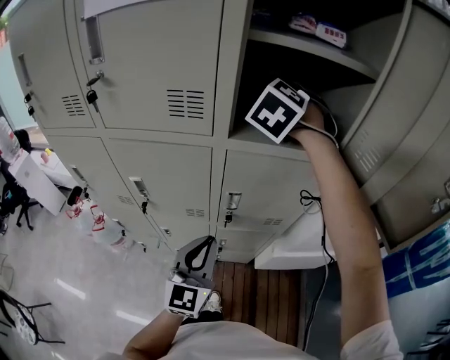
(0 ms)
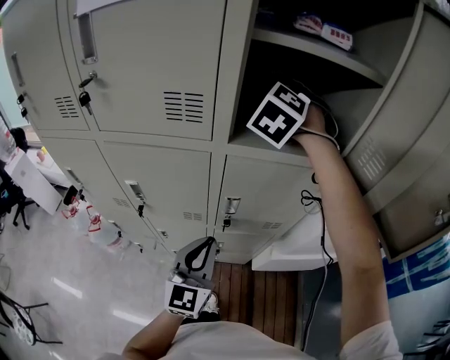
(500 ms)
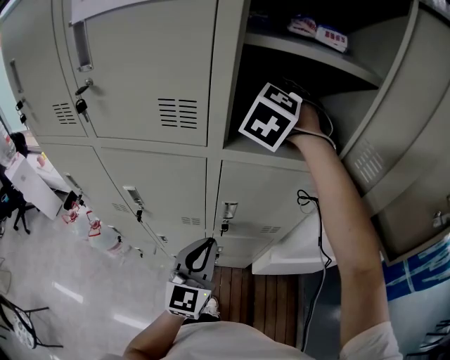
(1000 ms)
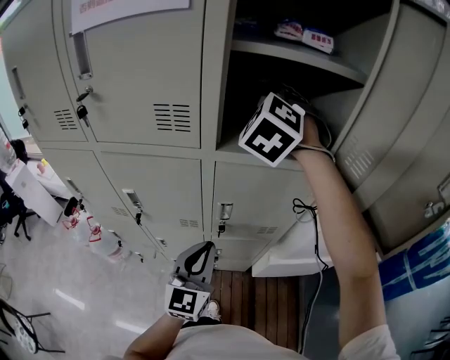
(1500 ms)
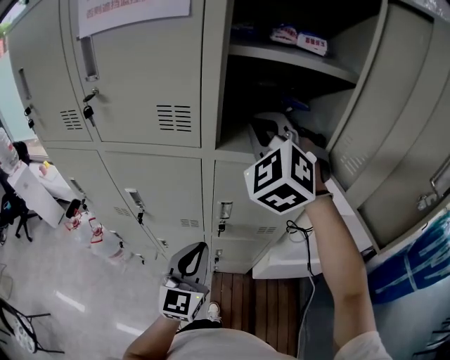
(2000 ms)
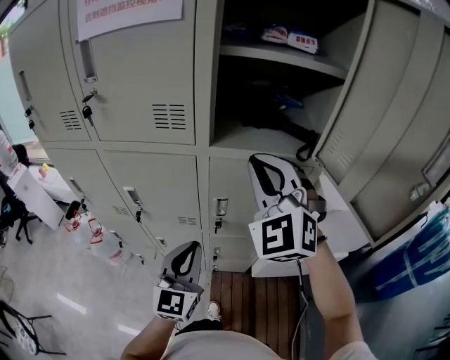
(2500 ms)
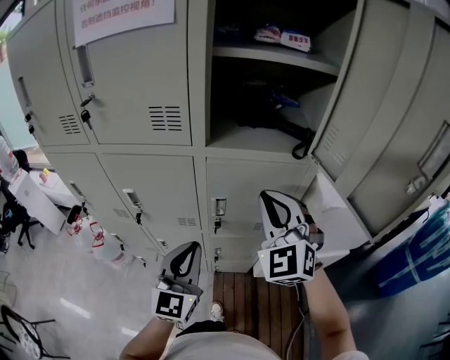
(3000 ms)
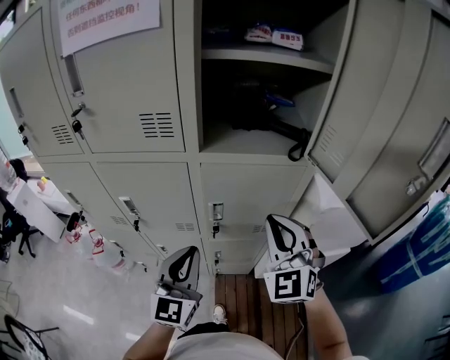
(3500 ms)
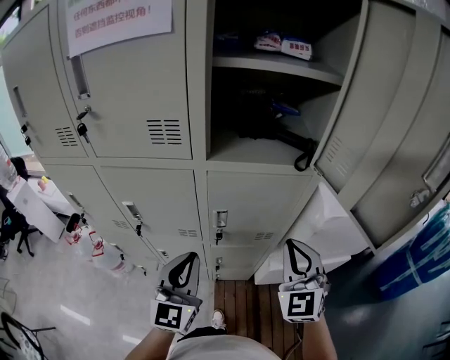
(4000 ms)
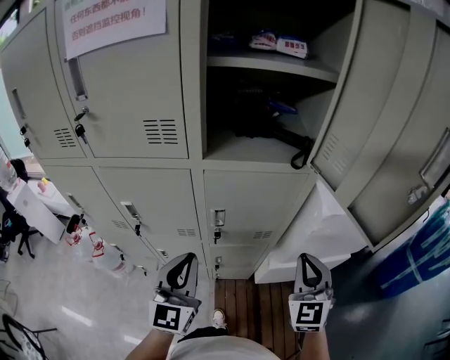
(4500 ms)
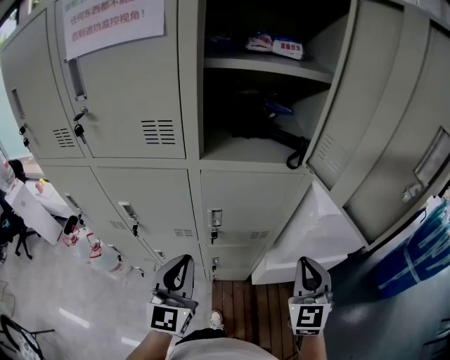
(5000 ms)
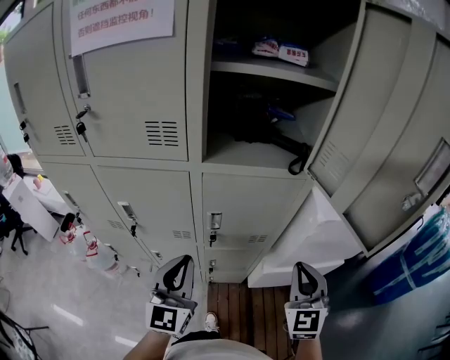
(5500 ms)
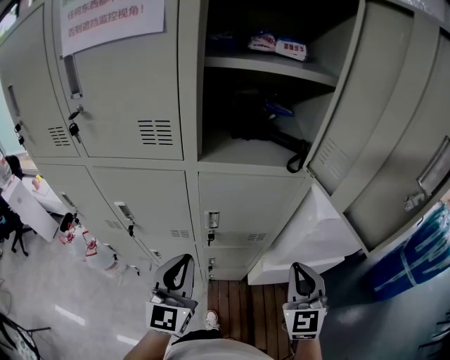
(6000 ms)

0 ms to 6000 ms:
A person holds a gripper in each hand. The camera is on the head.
0 ms to 2000 ms: The right gripper heads backward, covering approximately 10 cm, turns by roughly 30 degrees, and closes up.
2000 ms to 4000 ms: The right gripper shifts roughly 30 cm downward, backward and to the right, and rotates roughly 30 degrees.
4000 ms to 6000 ms: The right gripper is displaced to the right by approximately 5 cm.

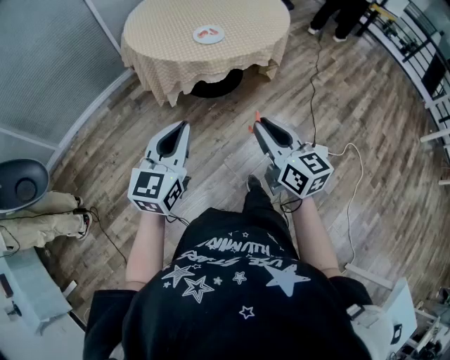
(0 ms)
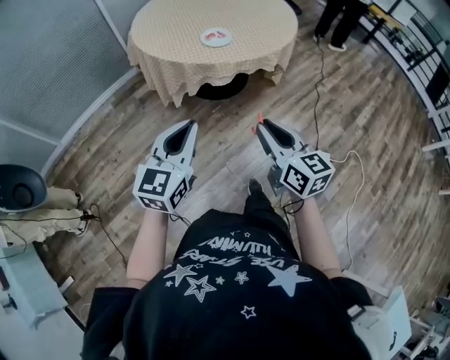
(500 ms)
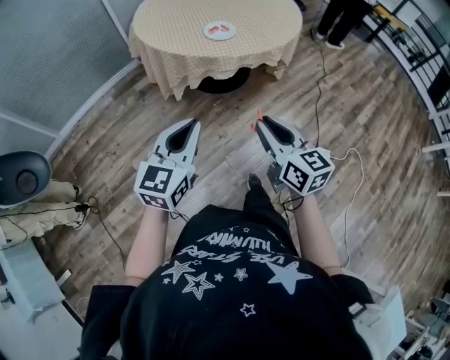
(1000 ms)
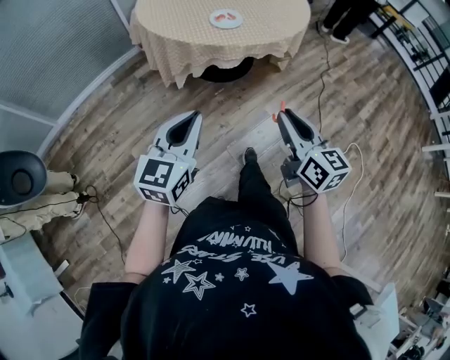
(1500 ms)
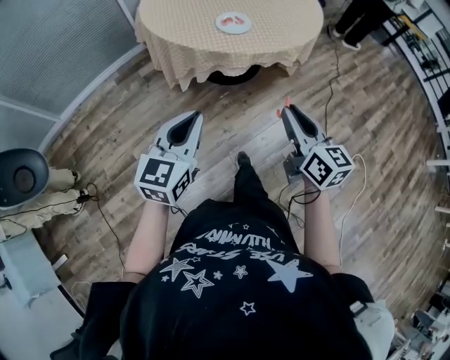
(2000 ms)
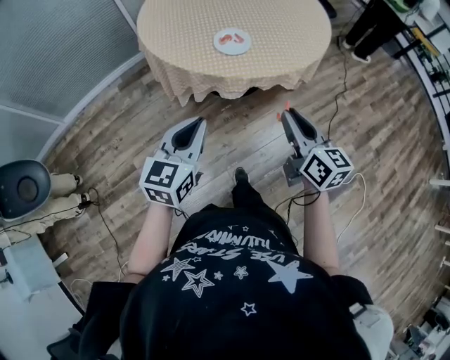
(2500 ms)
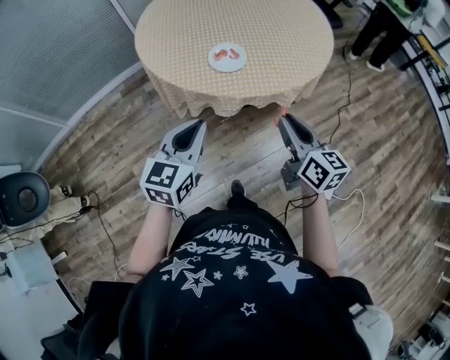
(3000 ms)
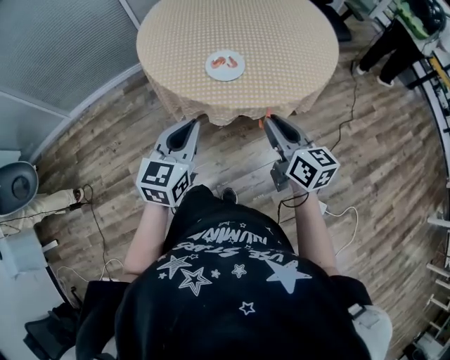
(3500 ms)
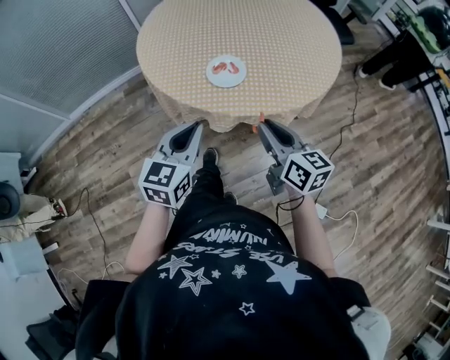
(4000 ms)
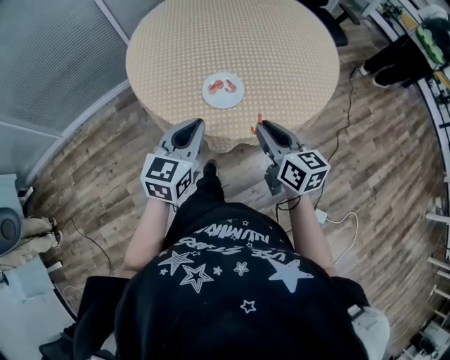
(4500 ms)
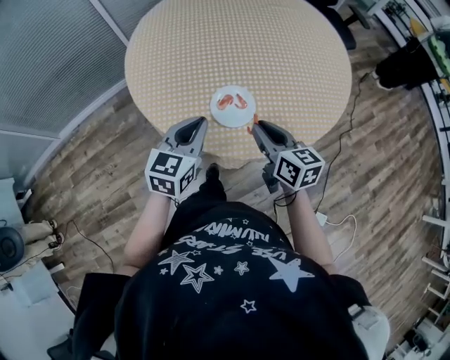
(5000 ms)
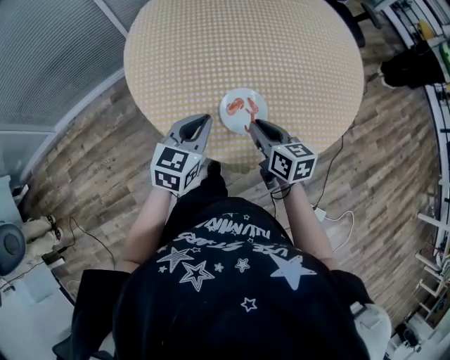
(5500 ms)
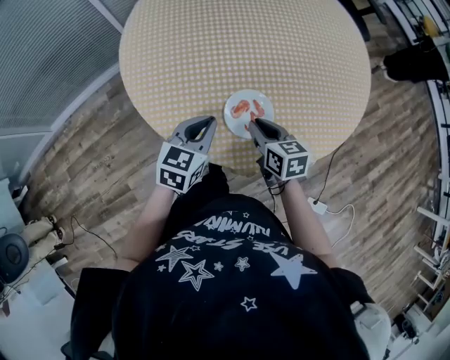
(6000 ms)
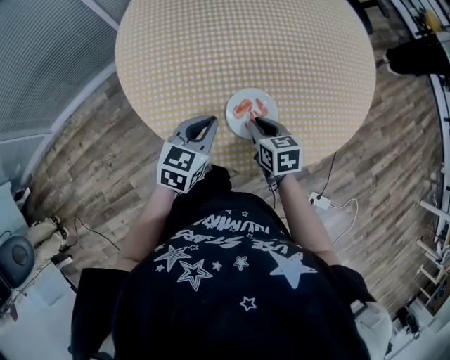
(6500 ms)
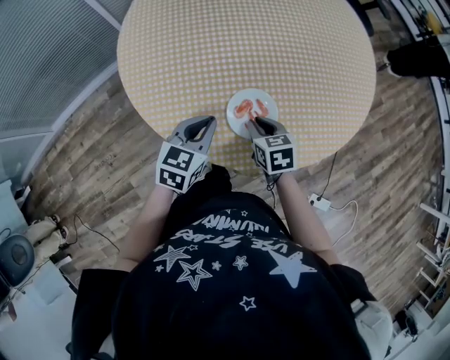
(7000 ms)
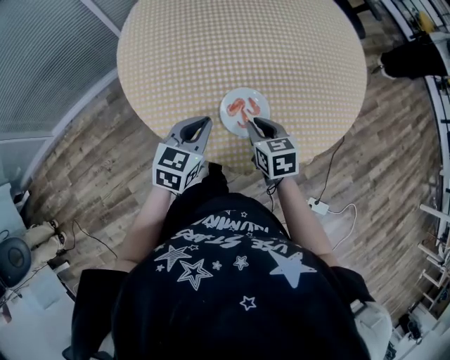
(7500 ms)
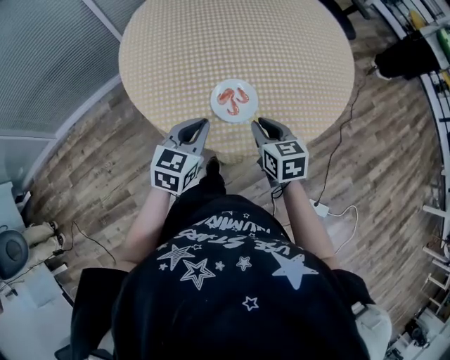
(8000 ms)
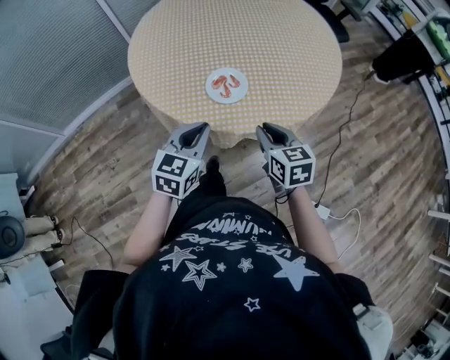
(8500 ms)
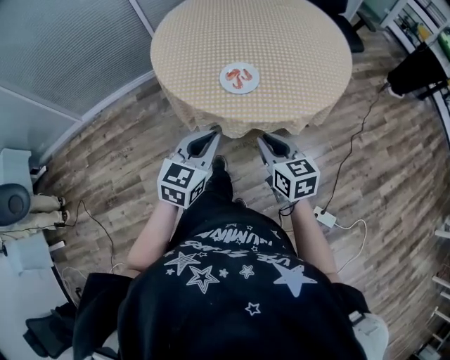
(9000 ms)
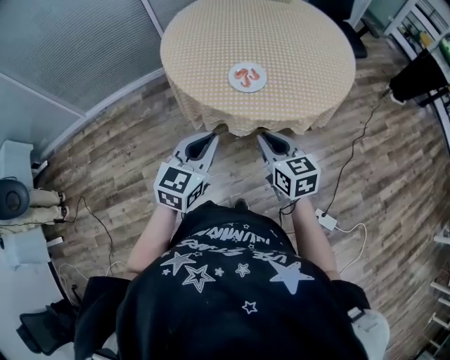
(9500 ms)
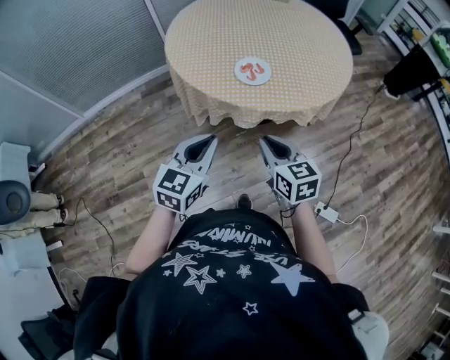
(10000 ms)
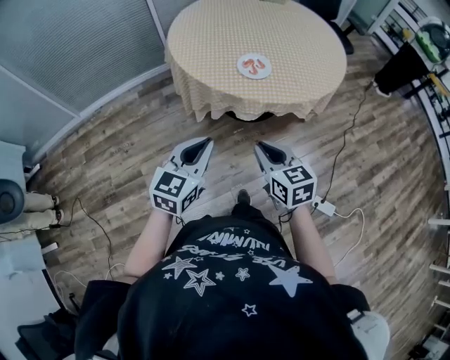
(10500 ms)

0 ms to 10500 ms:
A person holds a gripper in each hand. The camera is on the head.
0 ms to 2000 ms: The grippers both shift forward by approximately 10 cm.
2000 ms to 4000 ms: The right gripper is displaced forward by roughly 25 cm, while the left gripper goes some 25 cm forward and to the right.
4000 ms to 6500 ms: The right gripper shifts roughly 30 cm forward, downward and to the left, and tips its fingers downward by roughly 30 degrees. Meanwhile the left gripper moves forward and downward, some 30 cm, and swivels approximately 20 degrees.
6500 ms to 8500 ms: The right gripper is displaced backward, upward and to the right by some 25 cm, while the left gripper is displaced backward and upward by approximately 20 cm.
8500 ms to 10500 ms: Both grippers move backward and to the left, some 25 cm.

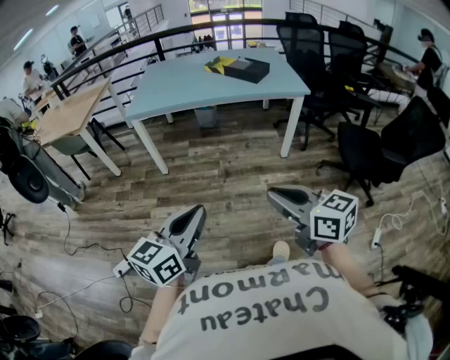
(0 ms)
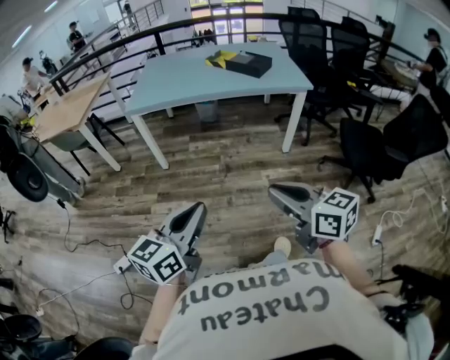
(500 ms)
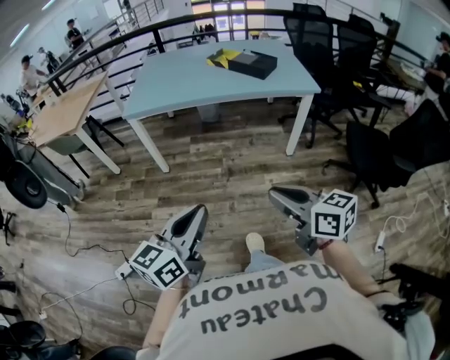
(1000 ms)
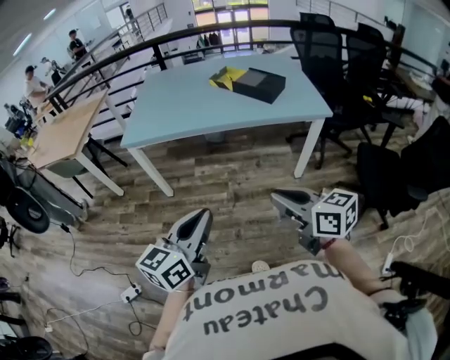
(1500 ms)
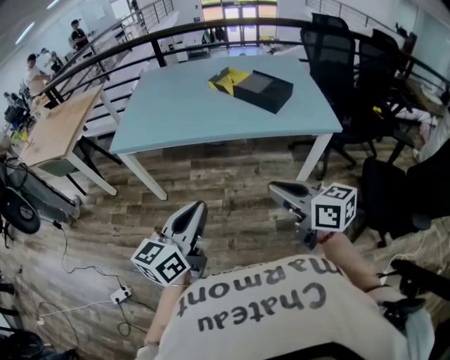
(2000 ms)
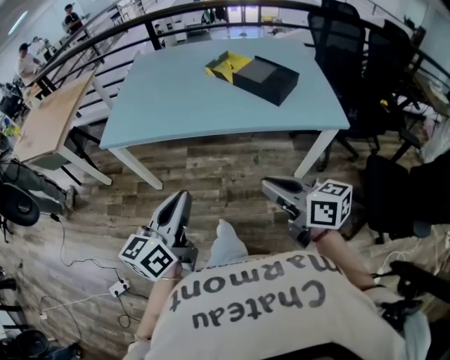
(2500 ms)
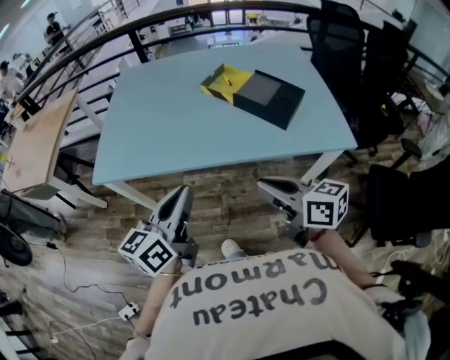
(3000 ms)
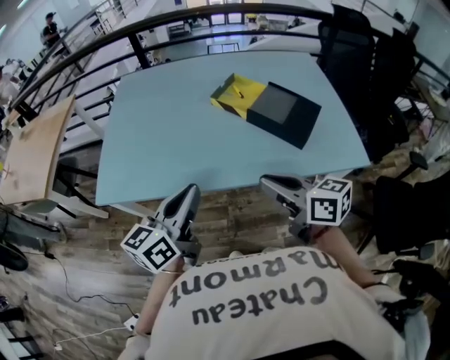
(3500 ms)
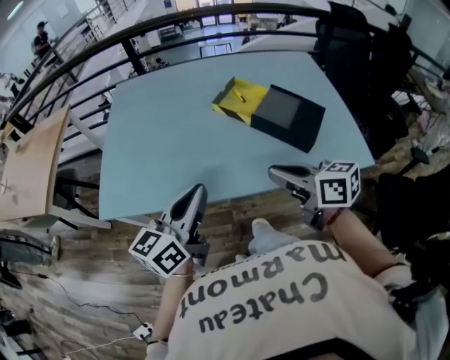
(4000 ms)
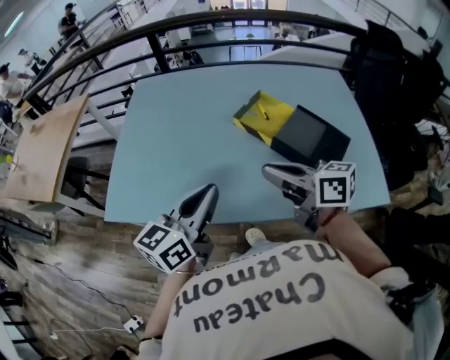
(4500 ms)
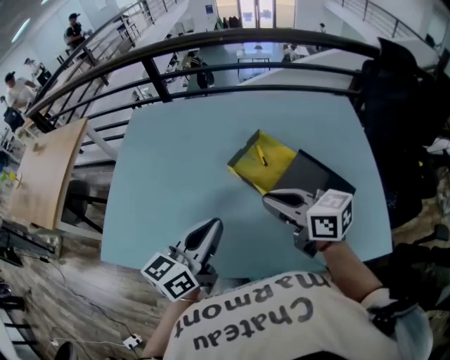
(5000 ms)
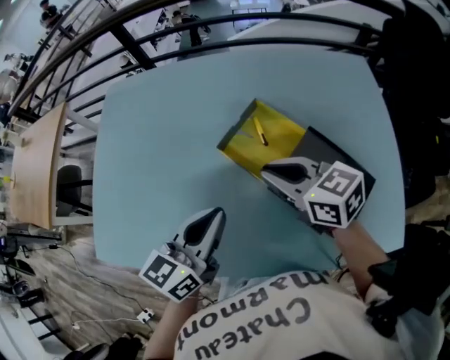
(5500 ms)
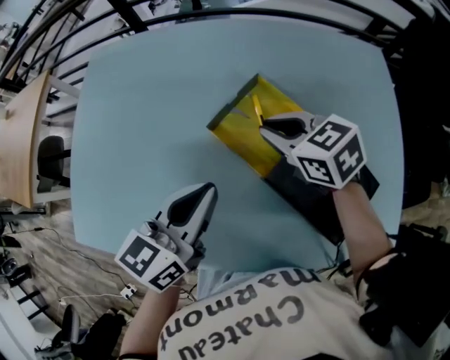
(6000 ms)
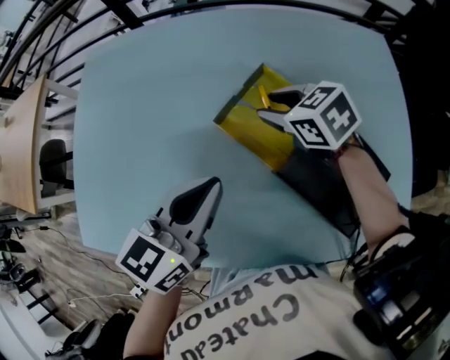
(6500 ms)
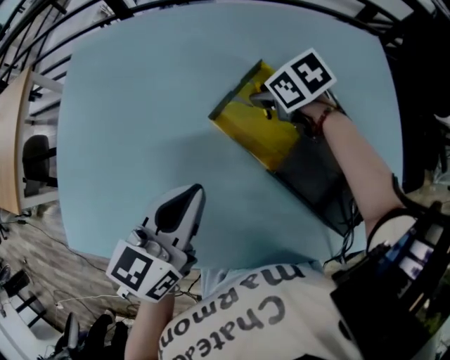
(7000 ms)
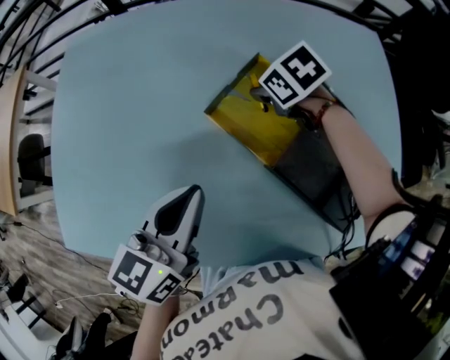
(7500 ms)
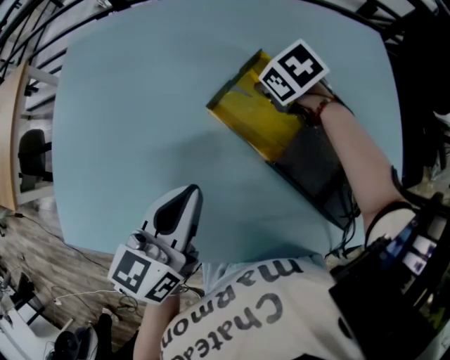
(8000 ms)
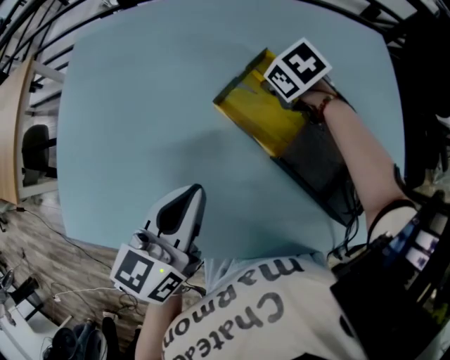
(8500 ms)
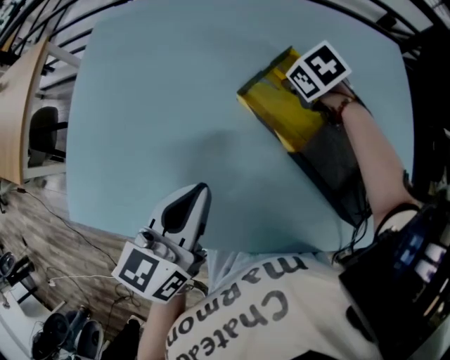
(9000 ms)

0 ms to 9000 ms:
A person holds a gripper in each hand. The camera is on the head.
0 ms to 2000 ms: The two grippers go approximately 35 cm forward.
2000 ms to 4500 ms: Both grippers are carried forward, roughly 50 cm.
4500 ms to 7000 ms: The left gripper travels forward, to the right and downward by some 20 cm. The right gripper is displaced forward, downward and to the right by some 40 cm, angles its fingers downward, by roughly 50 degrees, and opens up.
7000 ms to 9000 ms: The right gripper closes up; the left gripper changes place by about 5 cm.

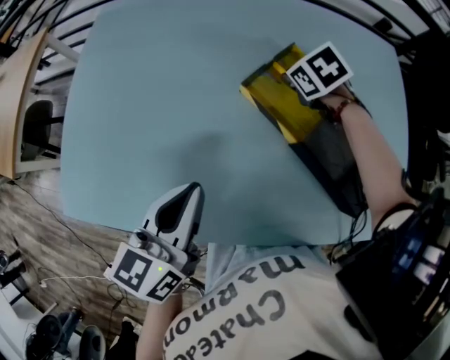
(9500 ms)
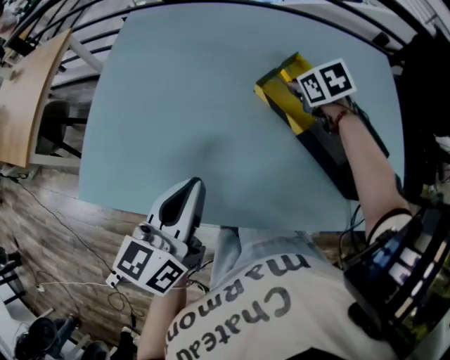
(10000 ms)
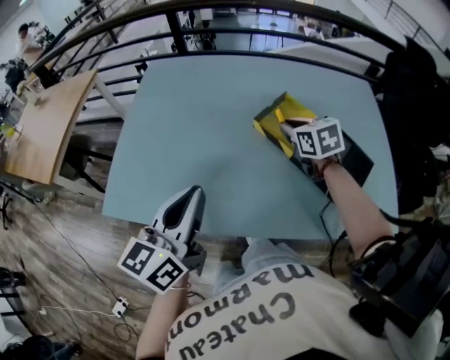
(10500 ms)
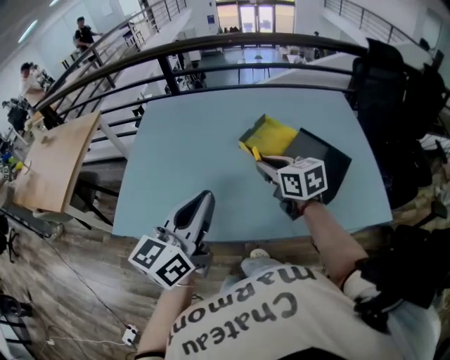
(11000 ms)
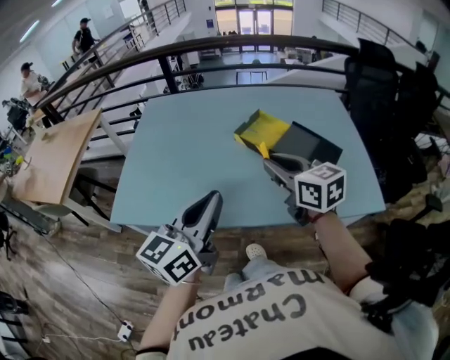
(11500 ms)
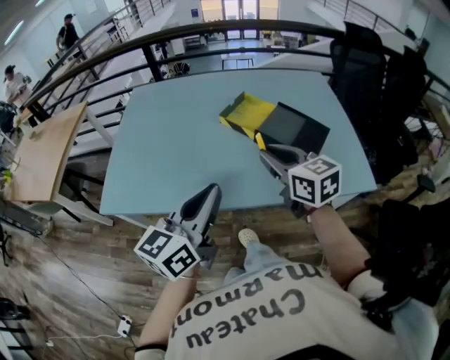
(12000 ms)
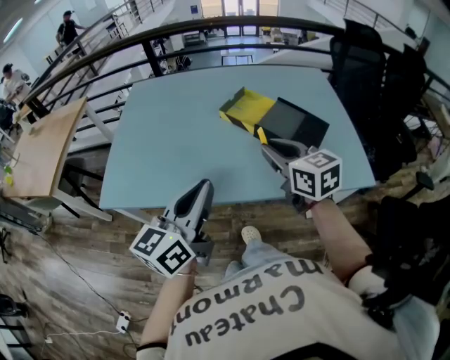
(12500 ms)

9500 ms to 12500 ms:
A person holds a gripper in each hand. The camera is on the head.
9500 ms to 11000 ms: The right gripper shifts about 30 cm backward and upward, and tilts its fingers approximately 40 degrees upward; the left gripper shifts approximately 20 cm upward and backward, and swivels approximately 20 degrees.
11000 ms to 12500 ms: The right gripper moves backward, to the right and upward, some 15 cm. The left gripper goes roughly 10 cm backward.
